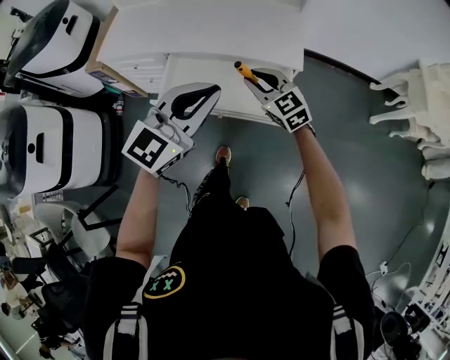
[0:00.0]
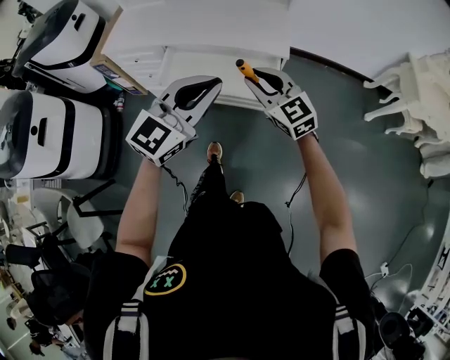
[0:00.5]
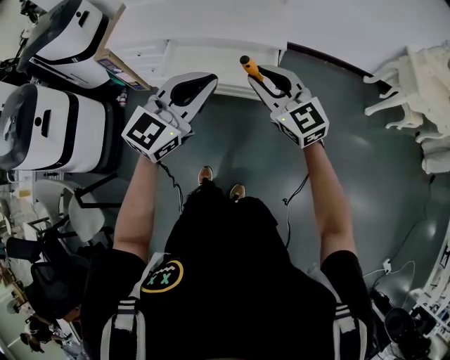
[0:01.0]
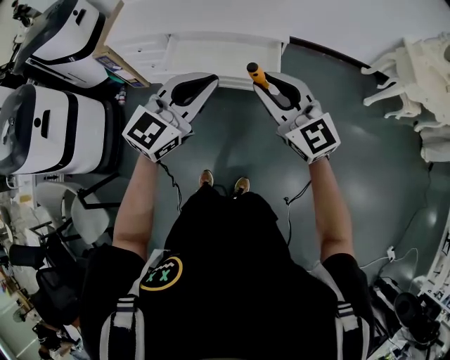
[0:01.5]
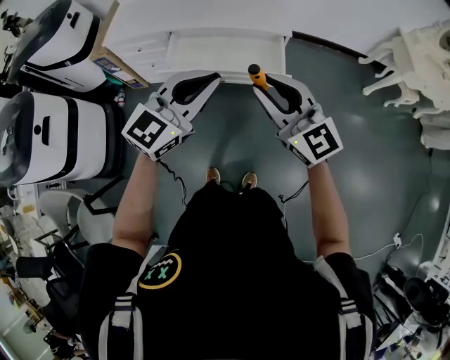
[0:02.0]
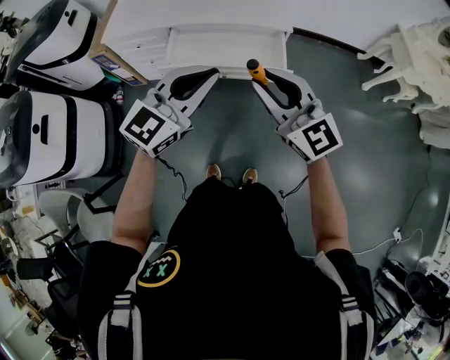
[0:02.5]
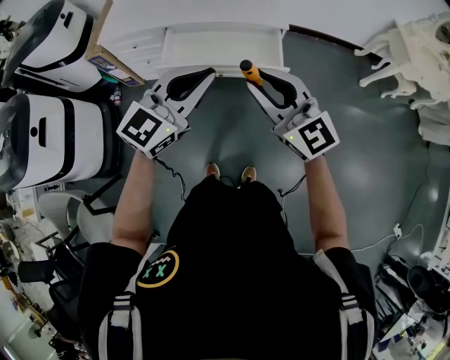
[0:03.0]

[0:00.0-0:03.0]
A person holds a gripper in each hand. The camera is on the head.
0:00.0 to 0:01.5: The left gripper travels backward by about 15 cm, while the right gripper moves backward and upward, approximately 30 cm.
0:01.5 to 0:03.0: Both grippers travel together to the left, approximately 5 cm.

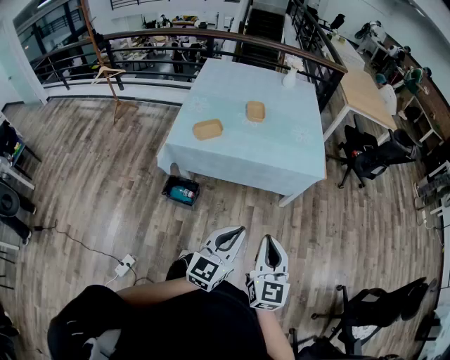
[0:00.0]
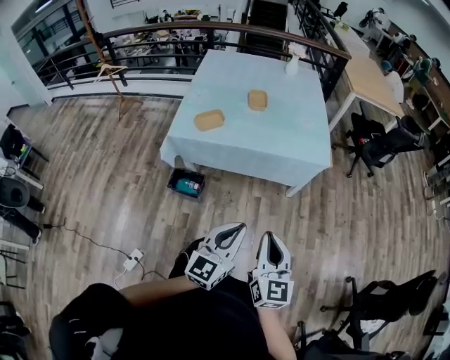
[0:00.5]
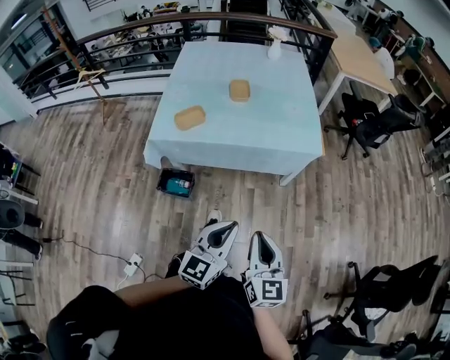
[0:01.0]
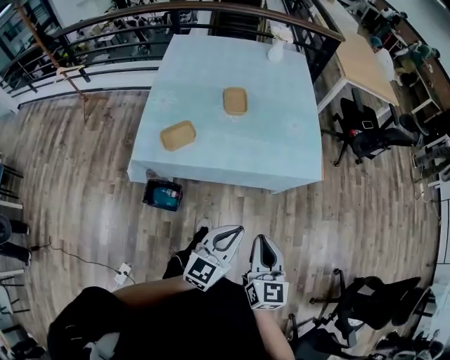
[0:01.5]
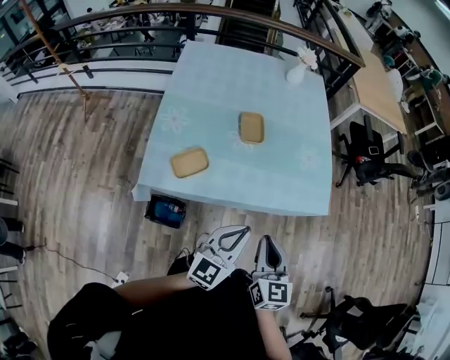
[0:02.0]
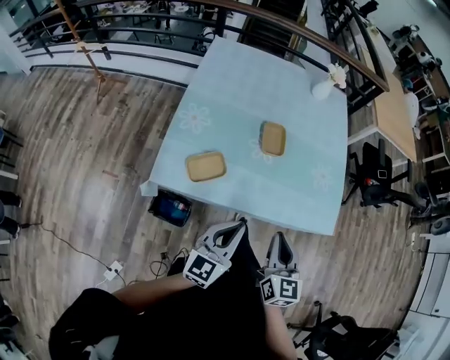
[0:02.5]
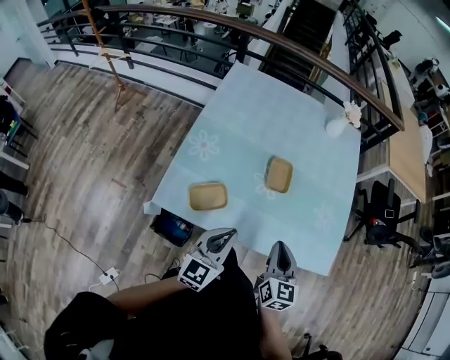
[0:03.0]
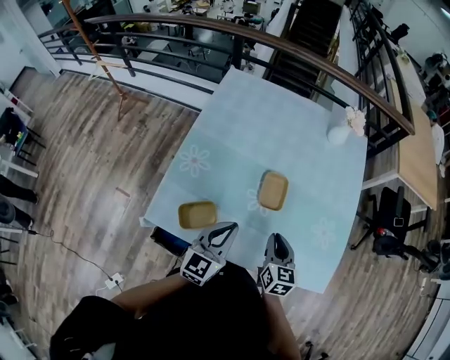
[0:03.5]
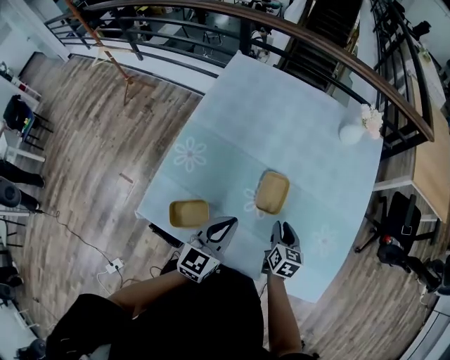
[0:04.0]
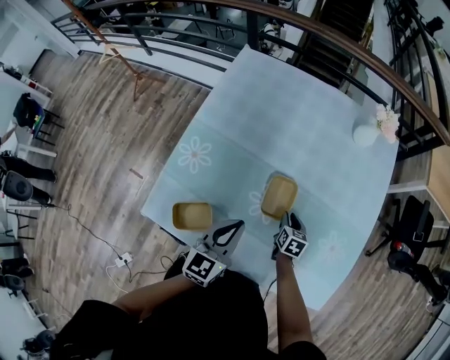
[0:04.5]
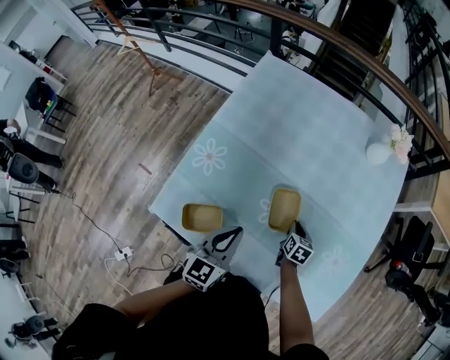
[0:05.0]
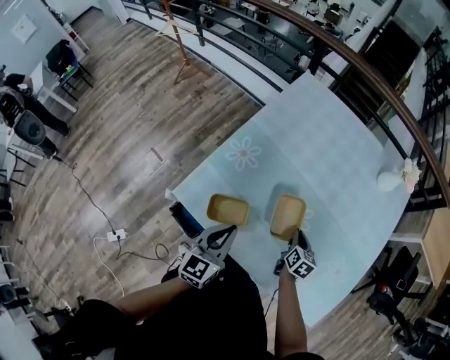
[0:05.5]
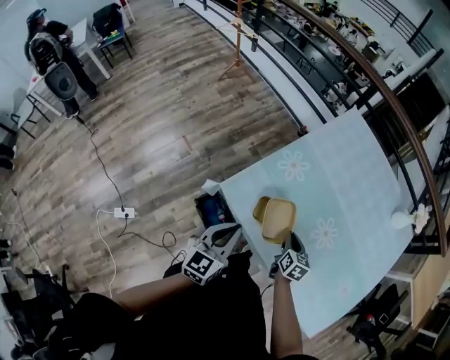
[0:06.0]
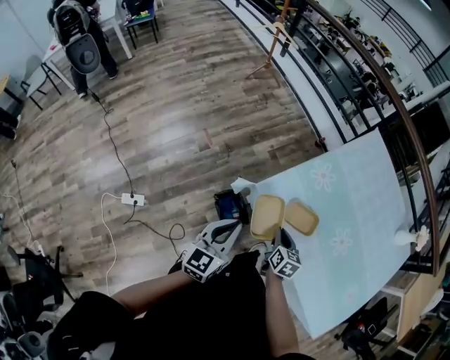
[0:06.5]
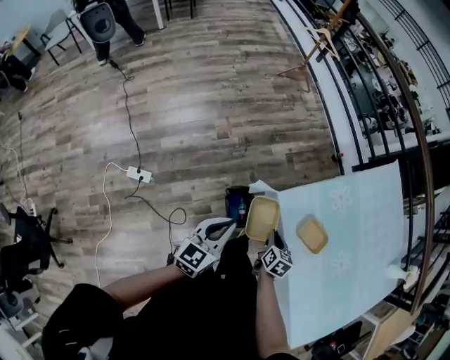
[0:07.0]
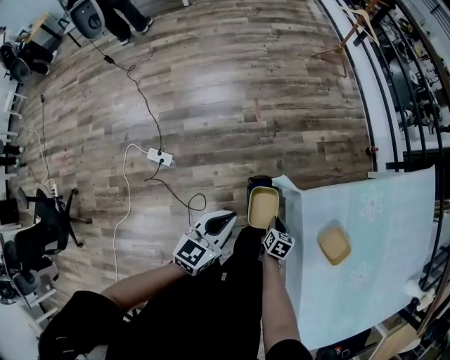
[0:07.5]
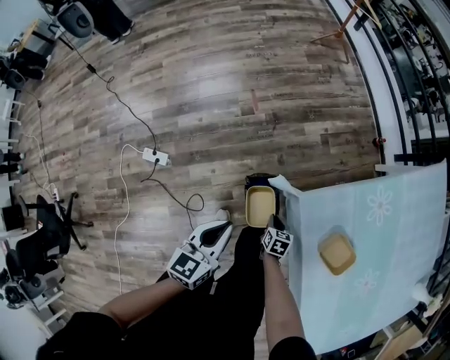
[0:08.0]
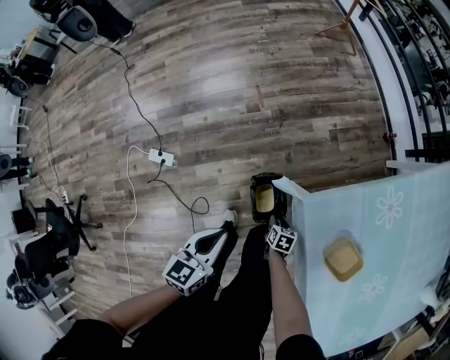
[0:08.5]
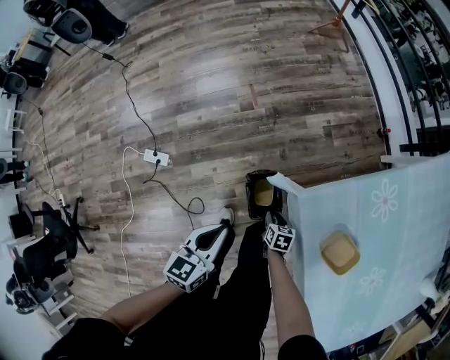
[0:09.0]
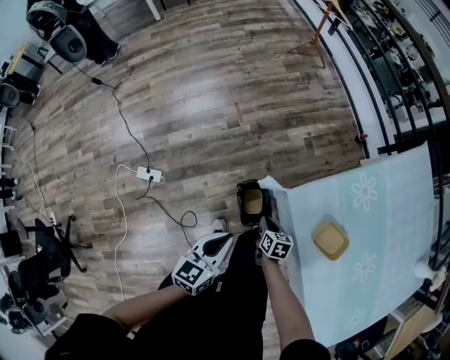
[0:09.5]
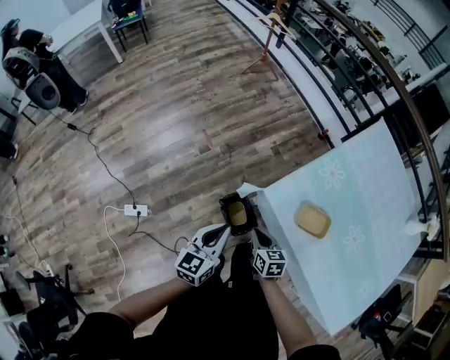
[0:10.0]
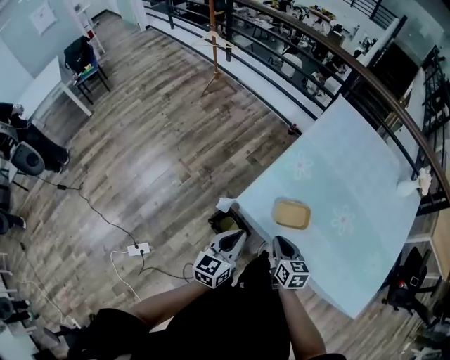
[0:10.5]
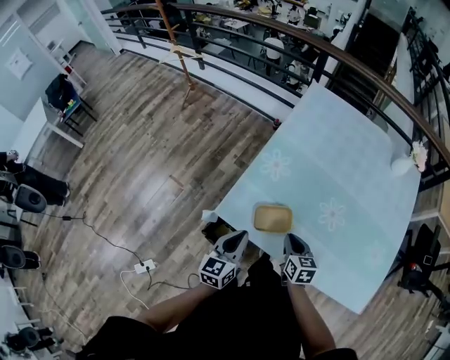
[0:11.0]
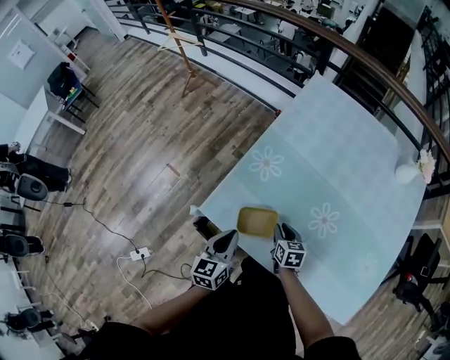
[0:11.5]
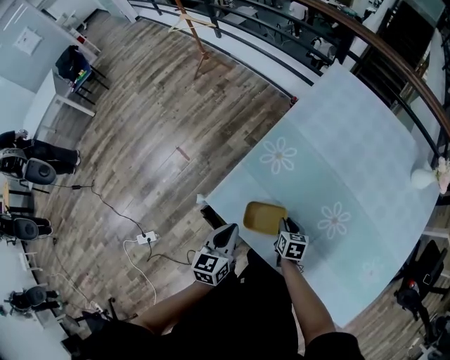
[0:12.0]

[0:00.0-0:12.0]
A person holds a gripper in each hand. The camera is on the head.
0:00.0 to 0:02.0: The grippers both shift forward by approximately 35 cm.
0:02.0 to 0:04.0: The left gripper shifts approximately 30 cm forward, and turns by about 30 degrees. Meanwhile the right gripper is displaced forward and downward by about 50 cm, and swivels roughly 30 degrees.
0:04.0 to 0:06.0: The left gripper ends up about 35 cm from where it was, and changes its angle by some 30 degrees, while the right gripper reaches some 10 cm downward, then returns, and turns by approximately 20 degrees.
0:06.0 to 0:08.0: The right gripper shifts by about 40 cm, and swivels roughly 40 degrees. The left gripper changes place by about 30 cm, and changes its angle by approximately 30 degrees.
0:08.0 to 0:10.0: The left gripper travels upward by some 10 cm. Meanwhile the right gripper moves upward, approximately 25 cm, and opens and closes again.
0:10.0 to 0:12.0: The right gripper changes place by approximately 35 cm, and rotates some 30 degrees; the left gripper ends up approximately 30 cm from where it was.

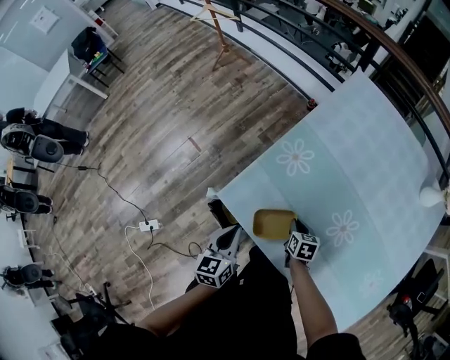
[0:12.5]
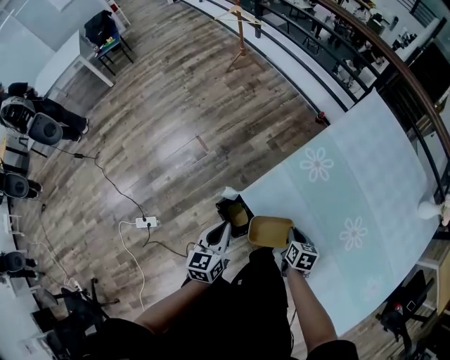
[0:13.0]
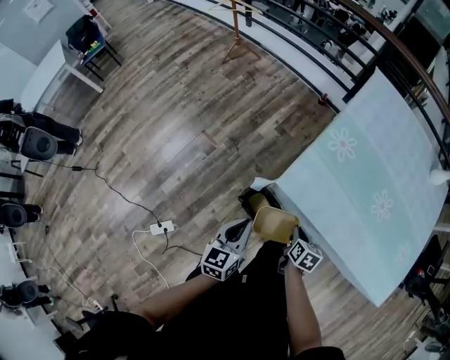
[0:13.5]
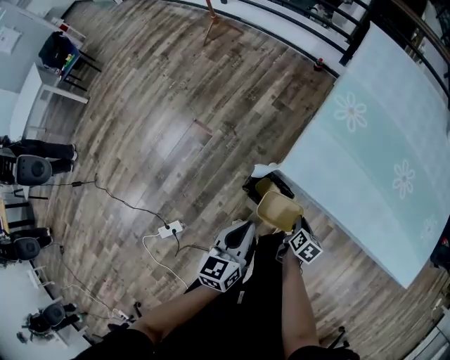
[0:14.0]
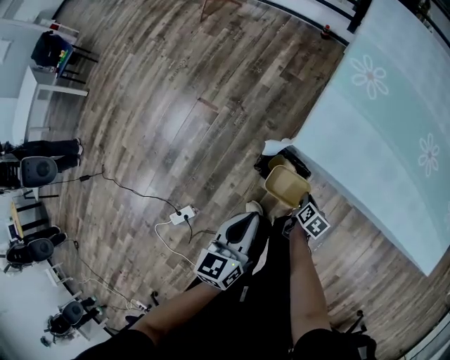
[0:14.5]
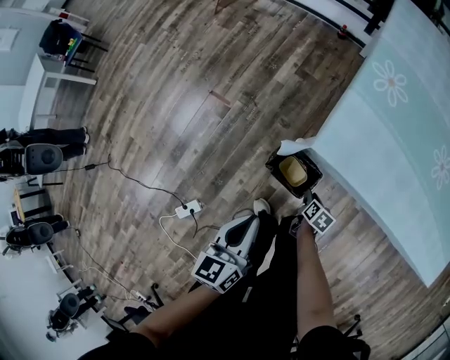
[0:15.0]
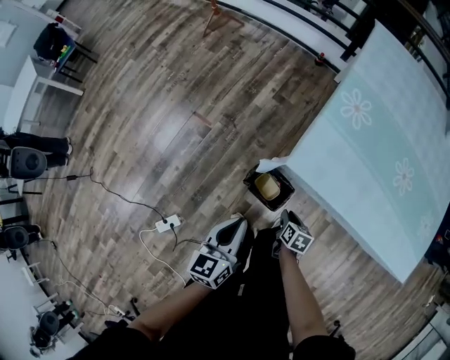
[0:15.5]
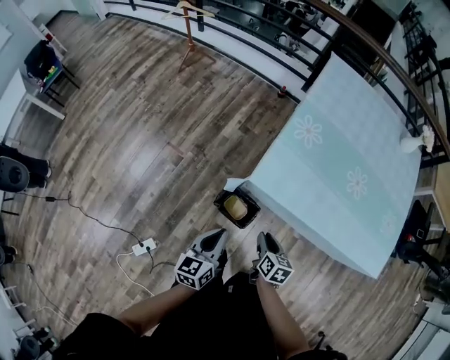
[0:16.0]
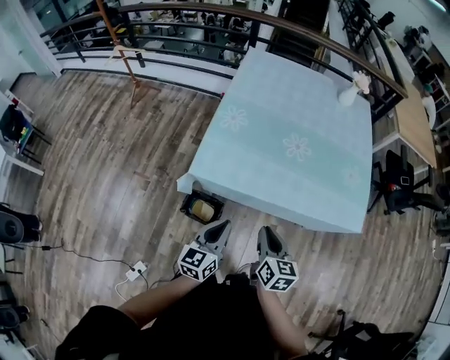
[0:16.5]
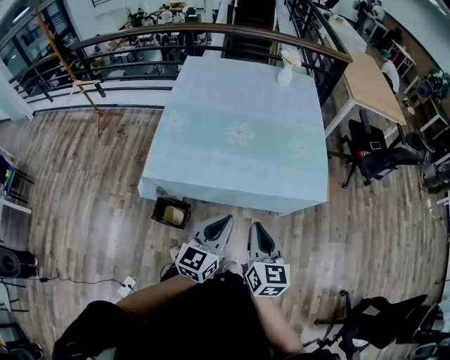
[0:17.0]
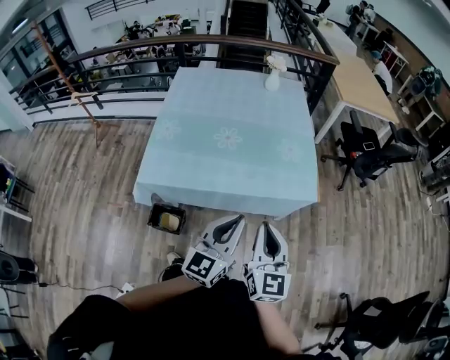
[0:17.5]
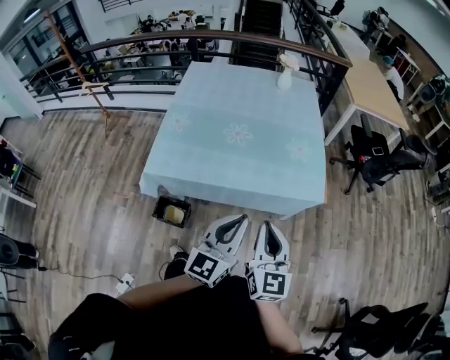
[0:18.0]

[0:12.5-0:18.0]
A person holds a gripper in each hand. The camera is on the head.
0:12.5 to 0:14.5: The left gripper shifts by approximately 30 cm; the right gripper shifts by roughly 35 cm, and rotates approximately 40 degrees.
0:14.5 to 0:16.0: The left gripper moves upward, roughly 10 cm. The right gripper travels upward by approximately 25 cm, and swivels some 20 degrees.
0:16.0 to 0:18.0: The two grippers travel together, approximately 50 cm. The left gripper turns by roughly 40 degrees; the right gripper angles its fingers upward, by about 40 degrees.

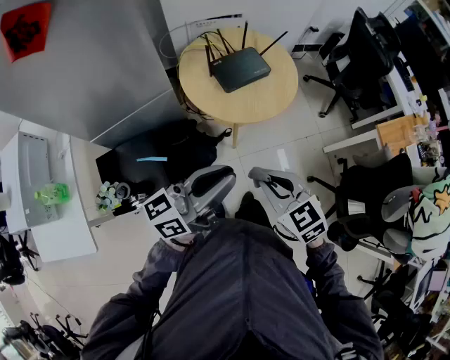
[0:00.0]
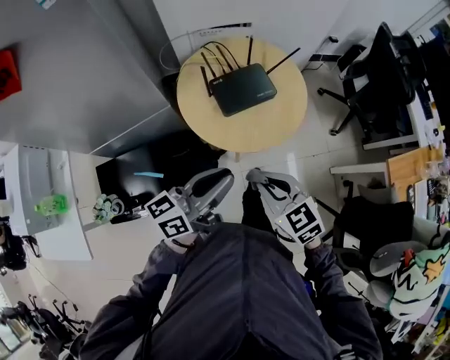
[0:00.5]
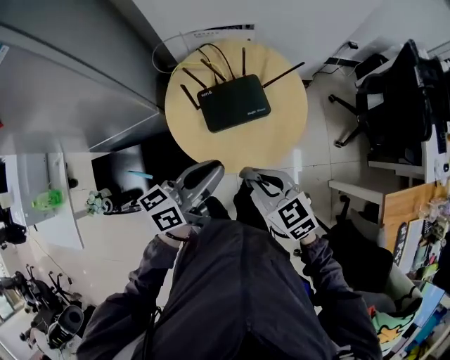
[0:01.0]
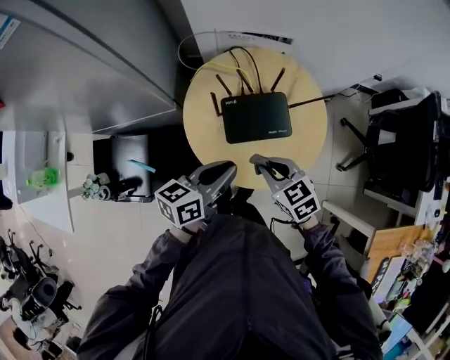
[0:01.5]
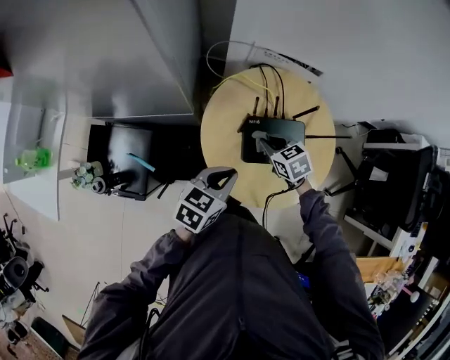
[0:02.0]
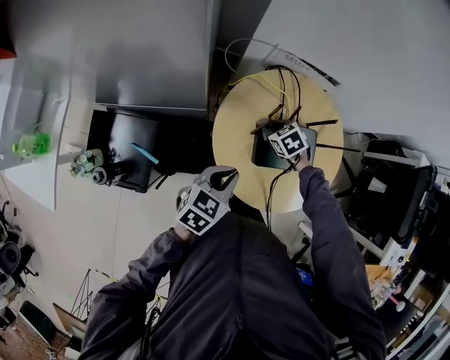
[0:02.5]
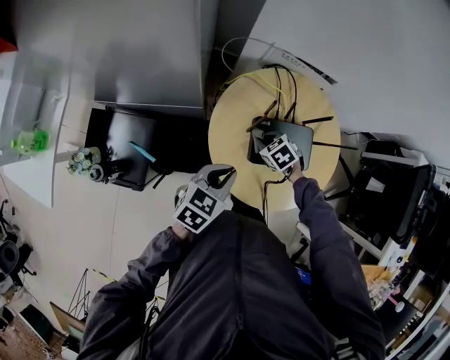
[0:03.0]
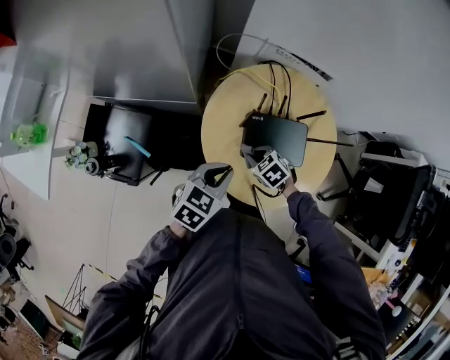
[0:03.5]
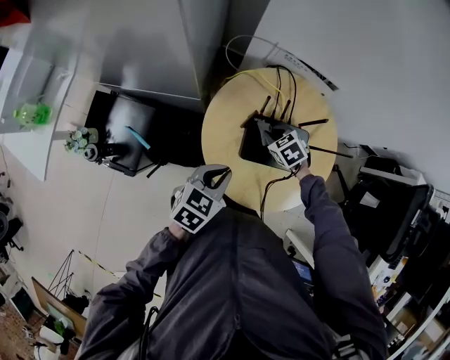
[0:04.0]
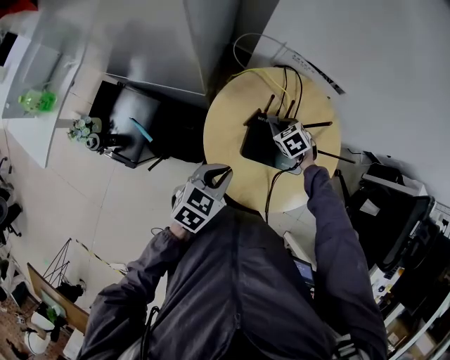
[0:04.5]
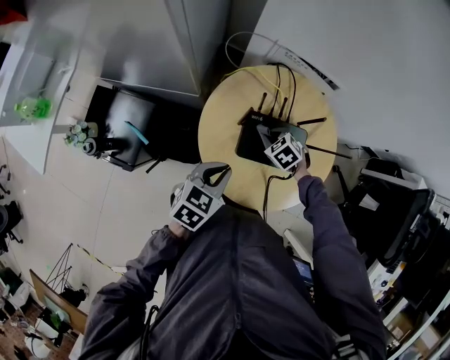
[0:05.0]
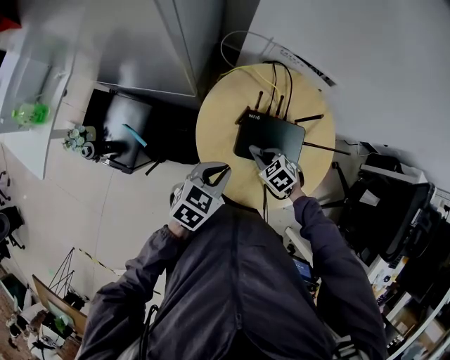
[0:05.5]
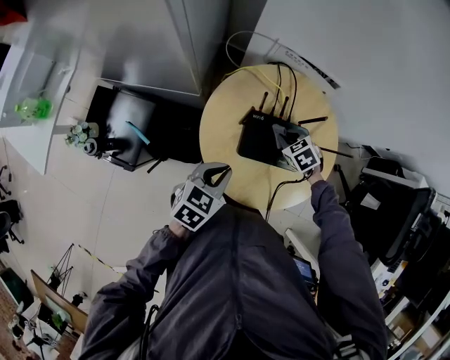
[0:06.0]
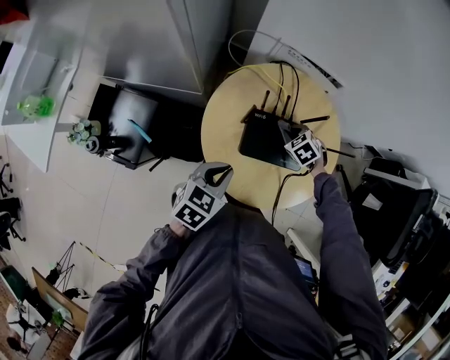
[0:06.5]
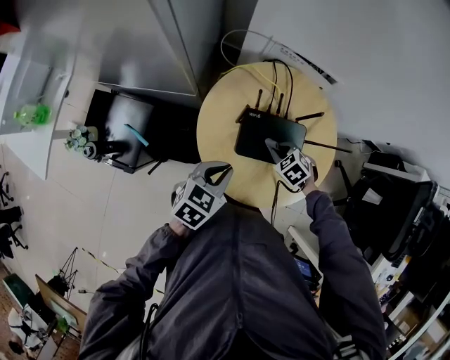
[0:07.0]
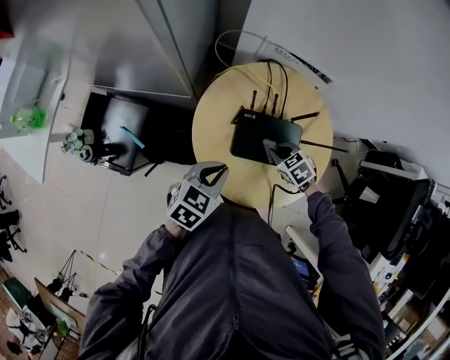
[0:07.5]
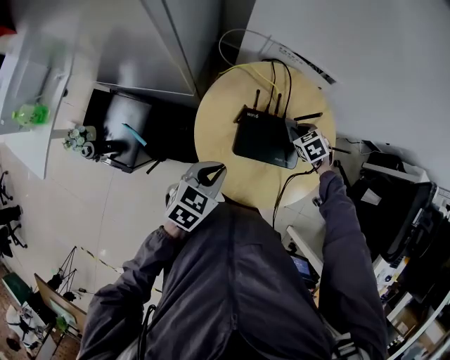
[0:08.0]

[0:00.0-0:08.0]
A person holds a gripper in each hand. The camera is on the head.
0:00.0 to 0:02.0: The right gripper ends up about 50 cm from where it was, and changes its angle by approximately 30 degrees. The left gripper moves approximately 35 cm, and tips its fingers downward by roughly 50 degrees.
0:02.0 to 0:04.0: The right gripper swings forward and backward, roughly 15 cm each way, with 2 reversals, and changes its angle by roughly 20 degrees.
0:04.0 to 0:06.0: The right gripper travels to the right by roughly 5 cm, and goes backward and returns, about 10 cm each way.
0:06.0 to 0:08.0: The right gripper is displaced to the right by roughly 5 cm, and reaches approximately 5 cm backward, then returns.
